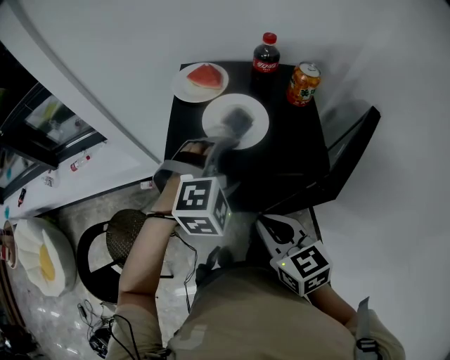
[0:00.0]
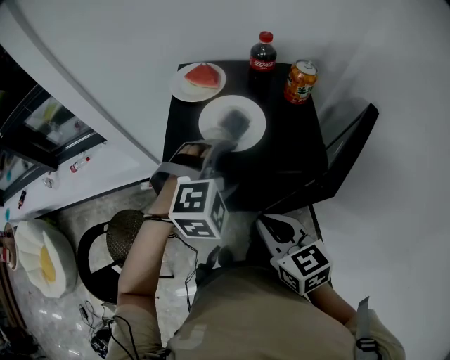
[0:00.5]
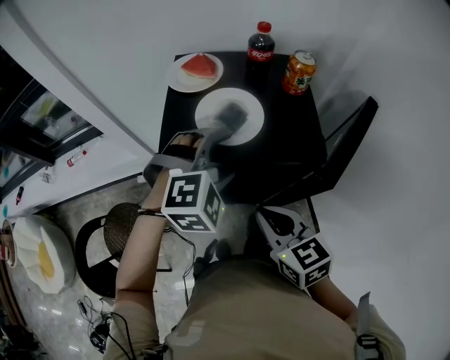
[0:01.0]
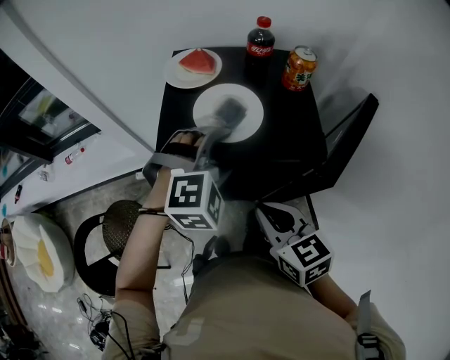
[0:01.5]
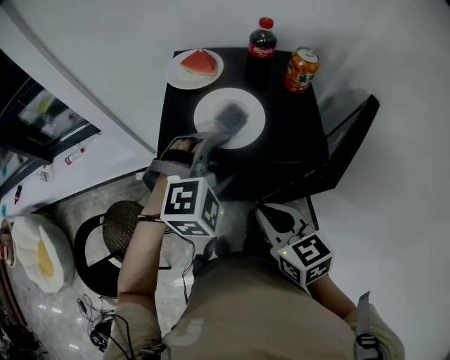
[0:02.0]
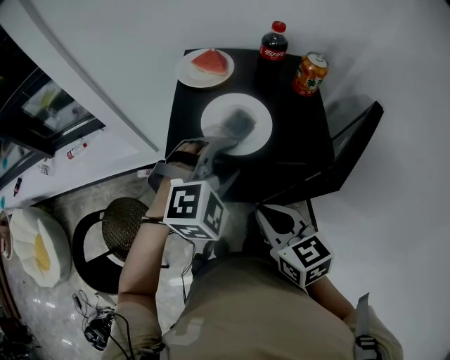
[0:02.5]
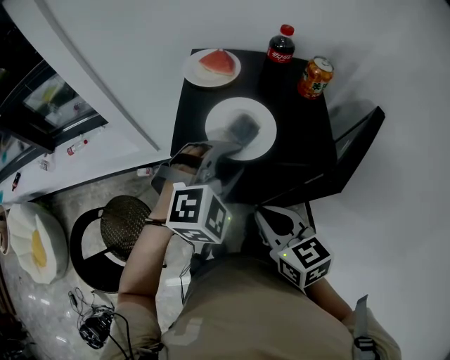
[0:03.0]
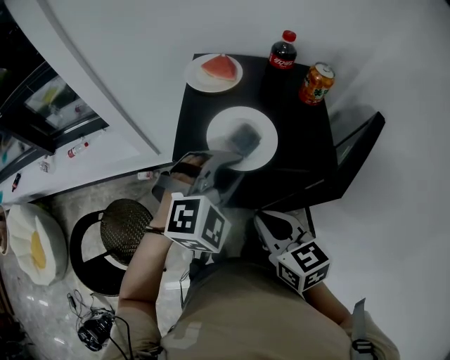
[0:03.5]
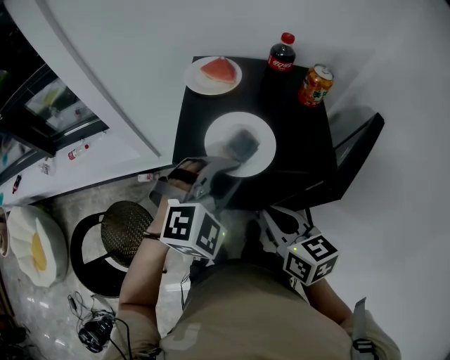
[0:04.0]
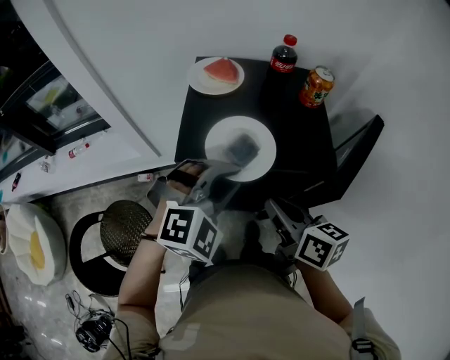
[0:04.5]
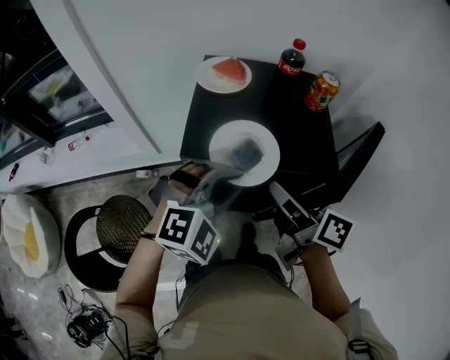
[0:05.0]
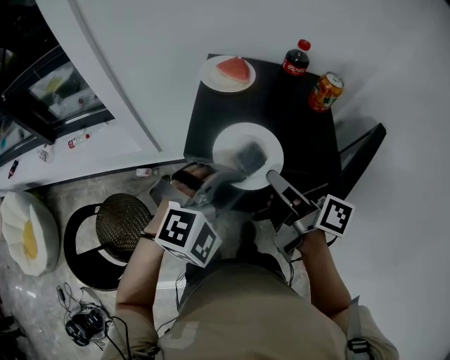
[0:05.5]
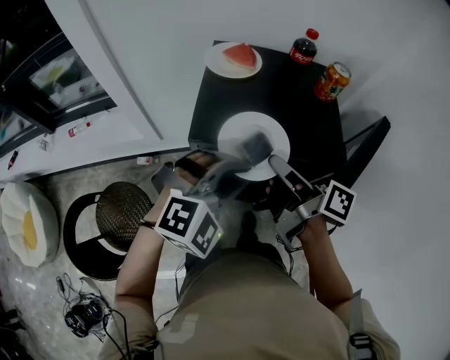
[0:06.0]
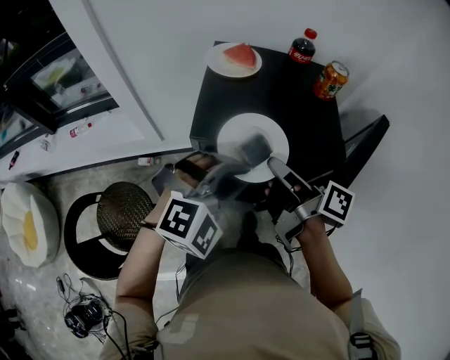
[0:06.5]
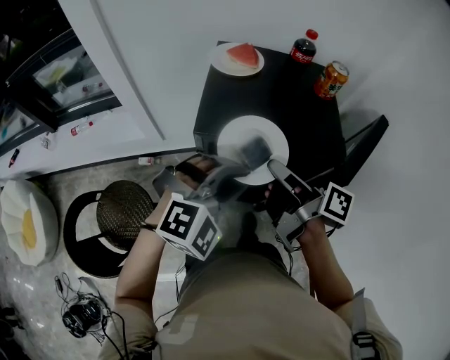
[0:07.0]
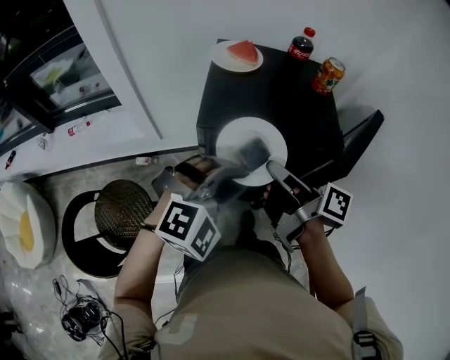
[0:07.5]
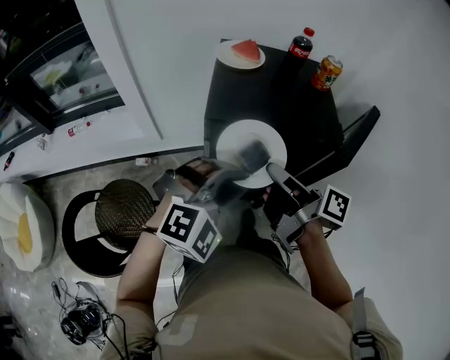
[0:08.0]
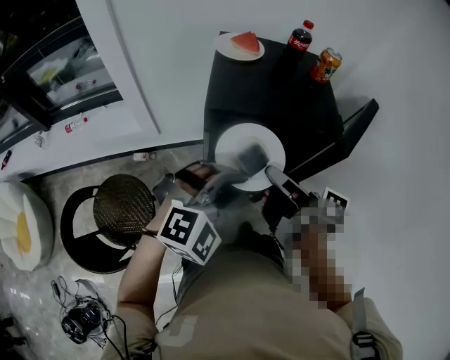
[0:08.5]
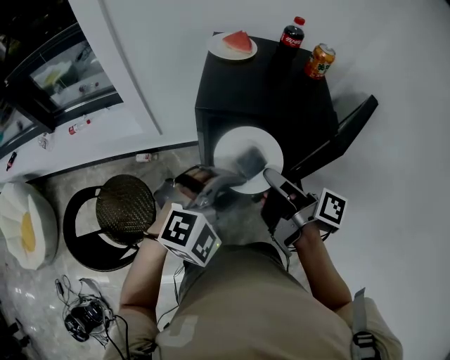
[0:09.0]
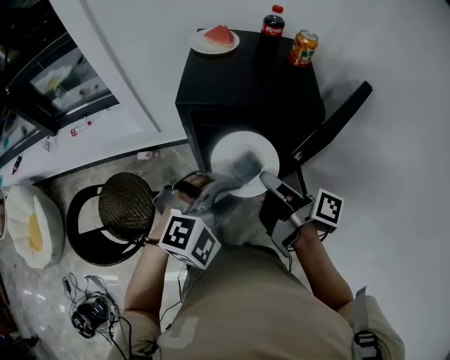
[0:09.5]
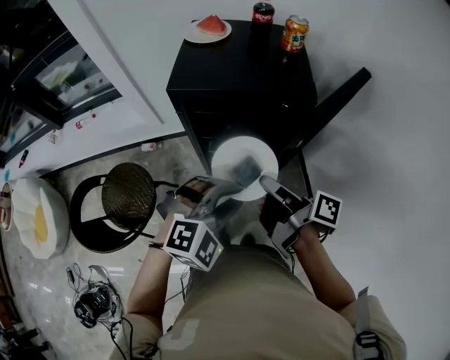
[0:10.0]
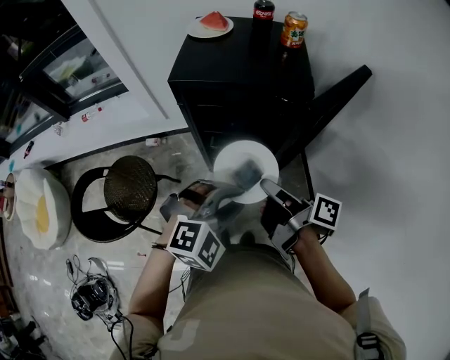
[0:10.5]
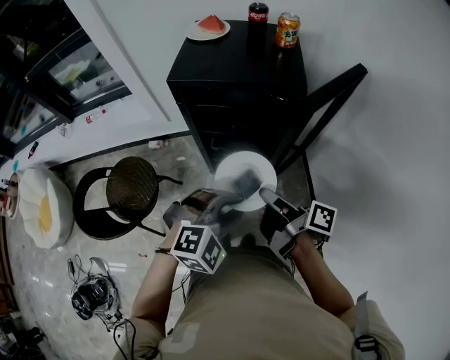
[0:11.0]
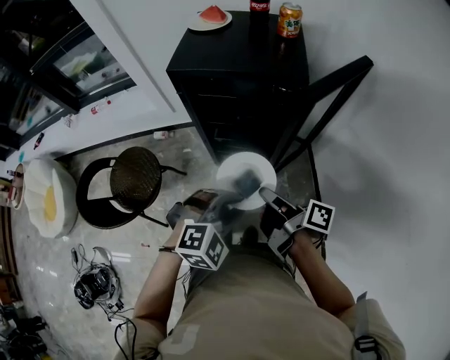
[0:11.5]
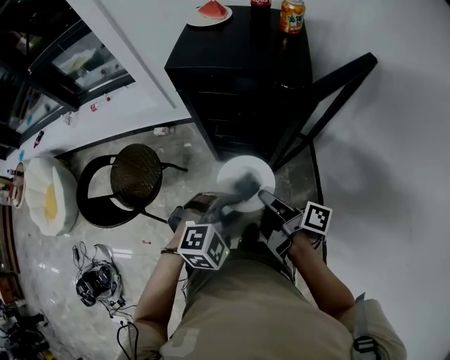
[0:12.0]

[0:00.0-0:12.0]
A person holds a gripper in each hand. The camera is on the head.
0:00.0 to 0:02.0: The grippers move only a little.
0:02.0 to 0:04.0: The left gripper closes up.
0:04.0 to 0:06.0: The right gripper travels forward by some 5 cm, and rolls clockwise, seen from behind, by some 50 degrees.
0:06.0 to 0:08.0: The grippers both shift backward by approximately 5 cm.
0:08.0 to 0:10.0: The left gripper travels backward and to the right by roughly 15 cm; the right gripper heads backward, to the right and downward, covering approximately 15 cm.
0:10.0 to 0:12.0: Both grippers move downward and backward, roughly 10 cm.

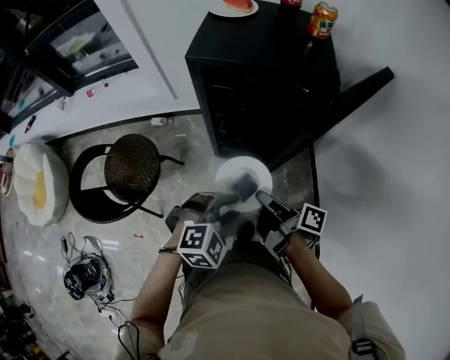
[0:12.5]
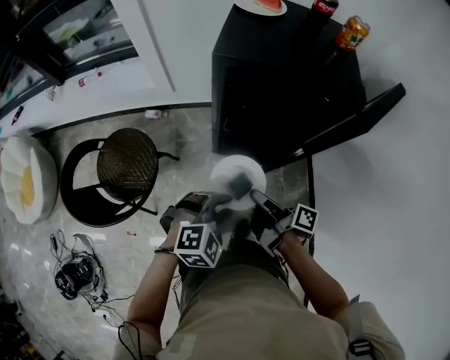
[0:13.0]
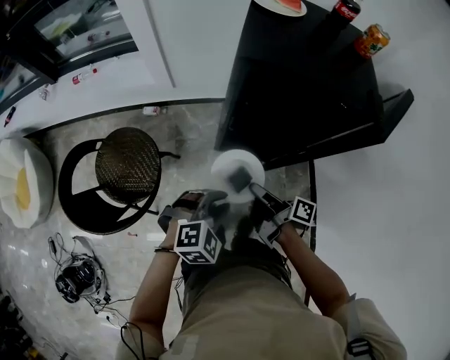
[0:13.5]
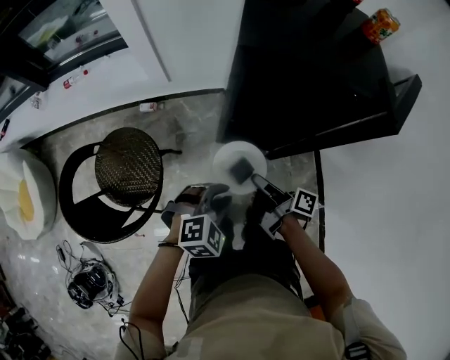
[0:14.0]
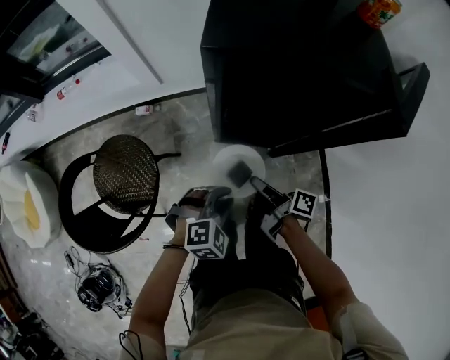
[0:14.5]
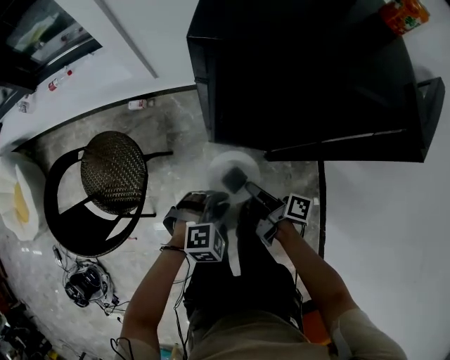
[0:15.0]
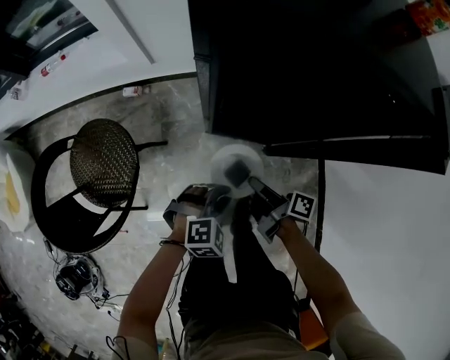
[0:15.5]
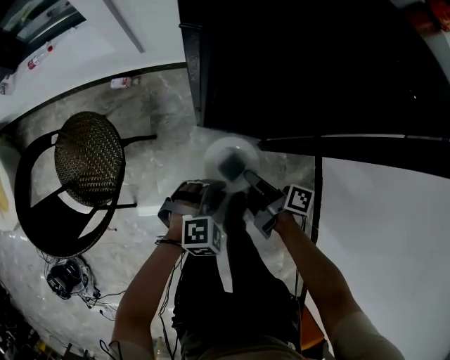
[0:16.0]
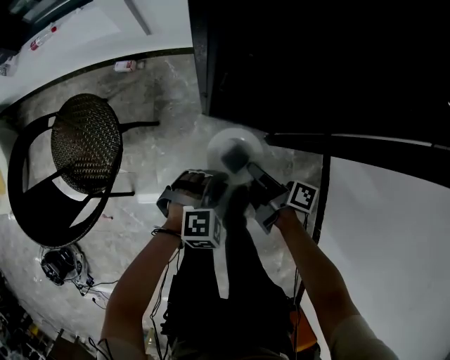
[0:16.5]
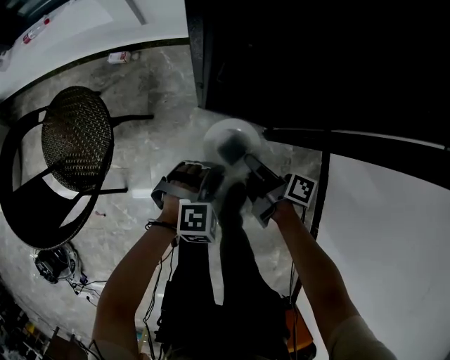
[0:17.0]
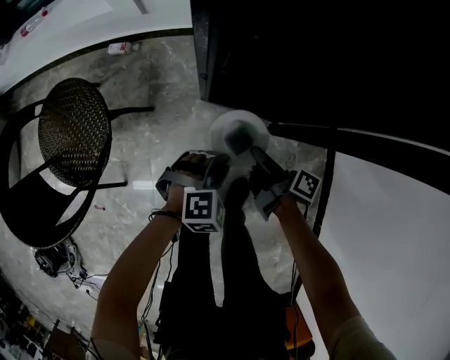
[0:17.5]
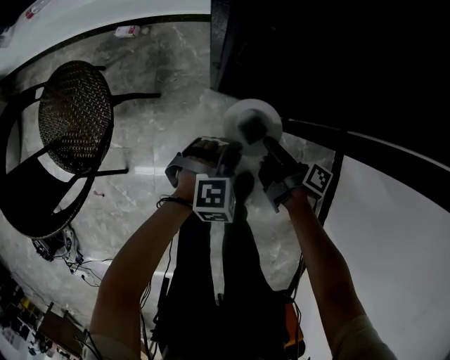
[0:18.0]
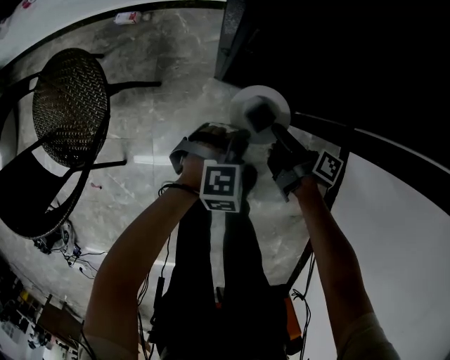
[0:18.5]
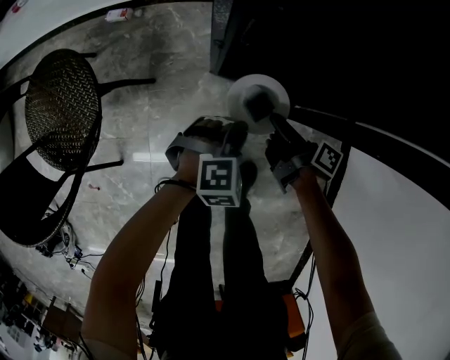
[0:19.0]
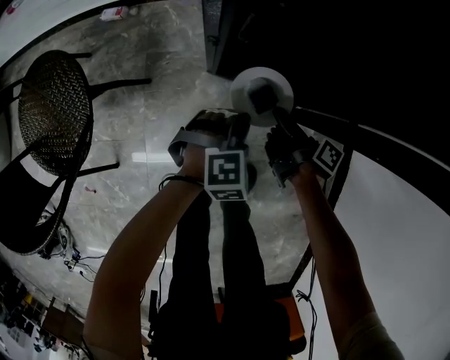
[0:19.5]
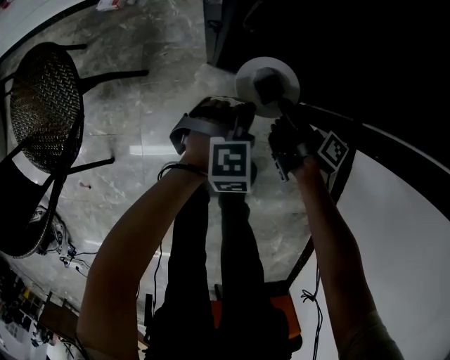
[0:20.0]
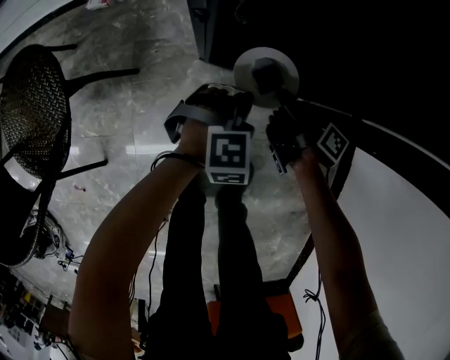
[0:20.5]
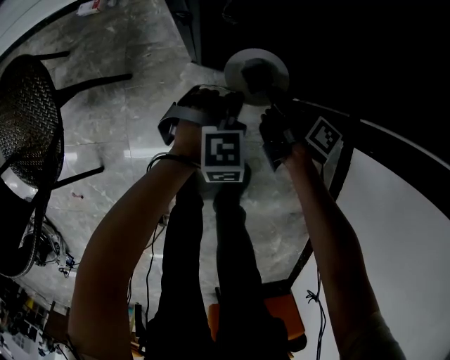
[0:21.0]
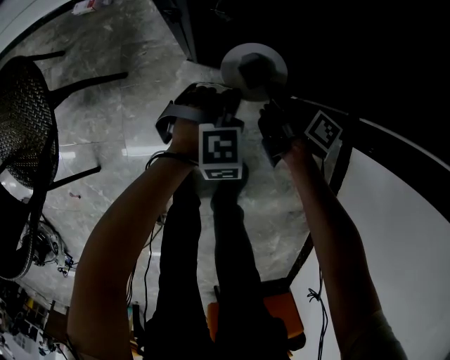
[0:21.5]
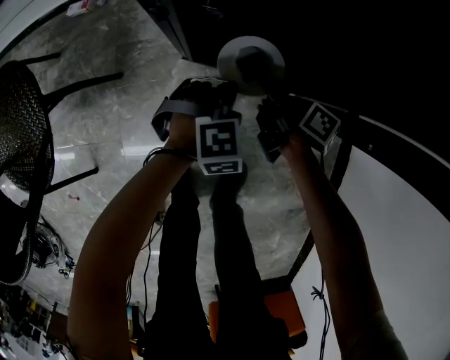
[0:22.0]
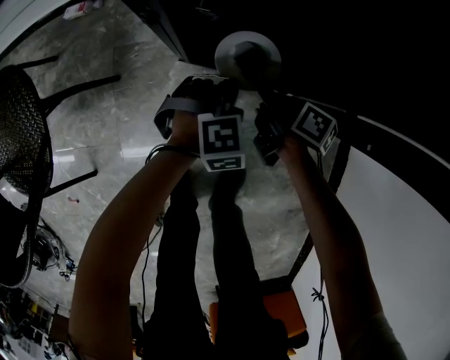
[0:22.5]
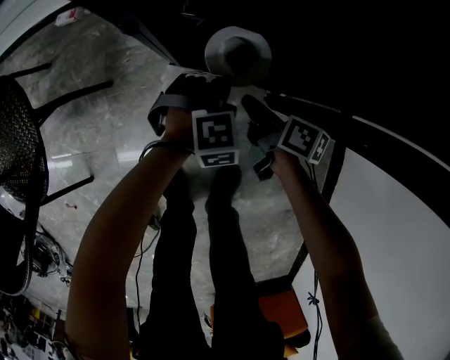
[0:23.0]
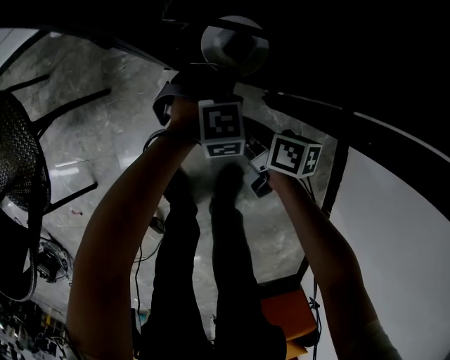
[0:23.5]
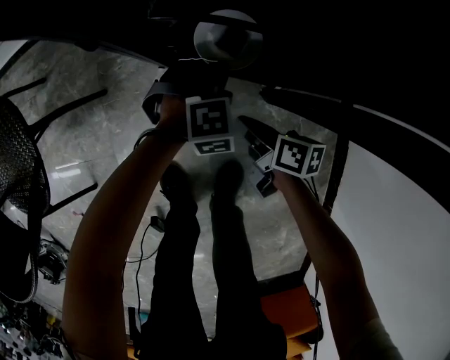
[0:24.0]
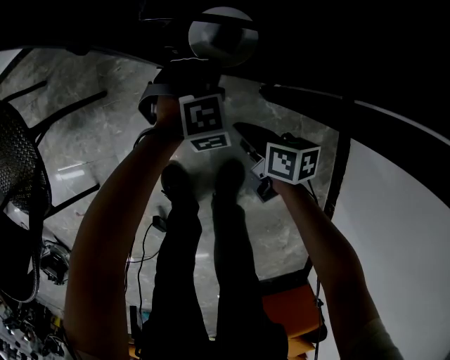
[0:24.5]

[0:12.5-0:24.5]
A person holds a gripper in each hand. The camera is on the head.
0:12.5 to 0:14.5: The two grippers go roughly 20 cm downward, to the left and forward.
0:14.5 to 0:16.5: Both grippers travel together downward, about 20 cm.
0:16.5 to 0:18.5: The two grippers go some 10 cm downward.
0:18.5 to 0:20.5: Both grippers travel together downward and forward, roughly 10 cm.
0:20.5 to 0:22.5: The left gripper ends up about 5 cm from where it was. Meanwhile the right gripper swivels approximately 20 degrees.
0:22.5 to 0:24.5: The right gripper is displaced backward by some 10 cm, and swivels some 30 degrees.

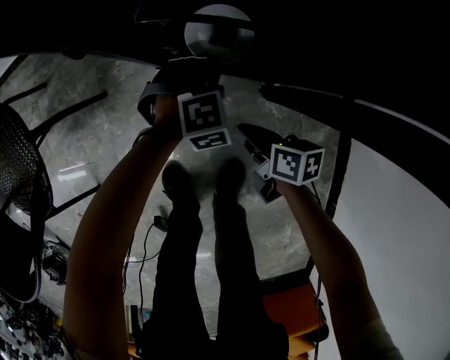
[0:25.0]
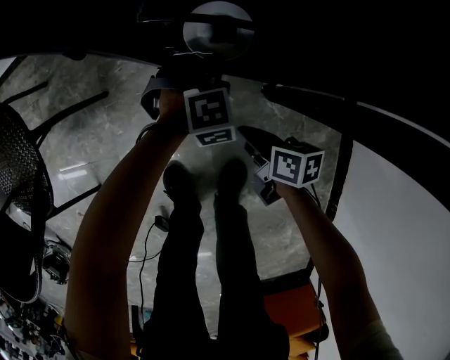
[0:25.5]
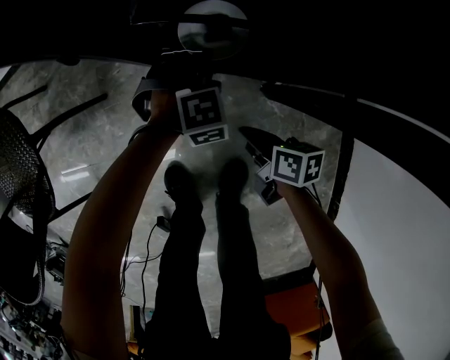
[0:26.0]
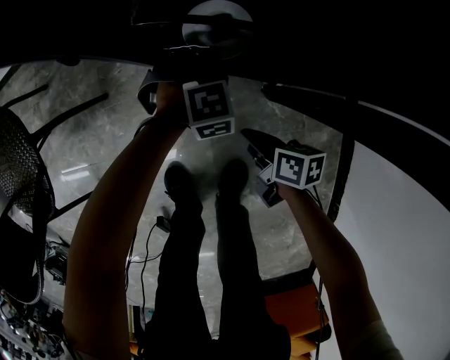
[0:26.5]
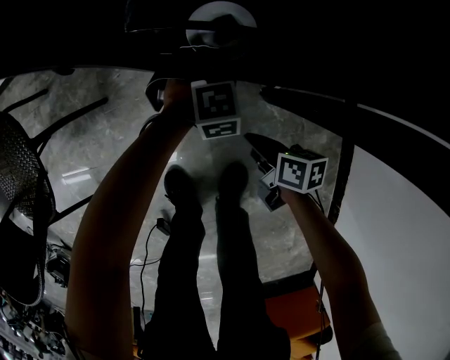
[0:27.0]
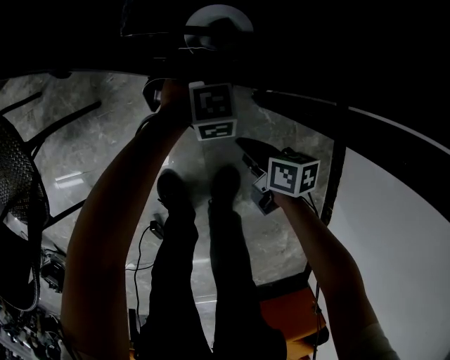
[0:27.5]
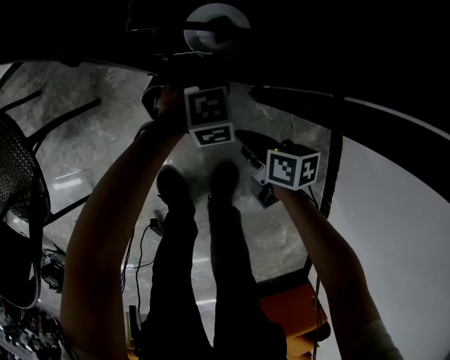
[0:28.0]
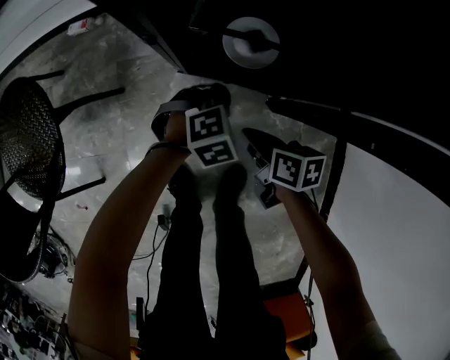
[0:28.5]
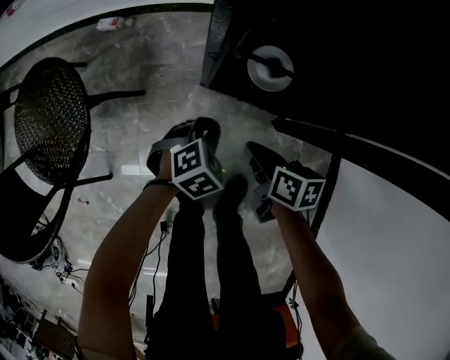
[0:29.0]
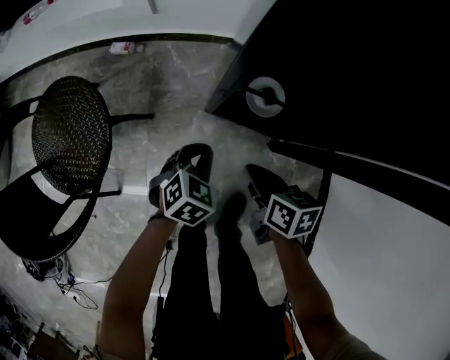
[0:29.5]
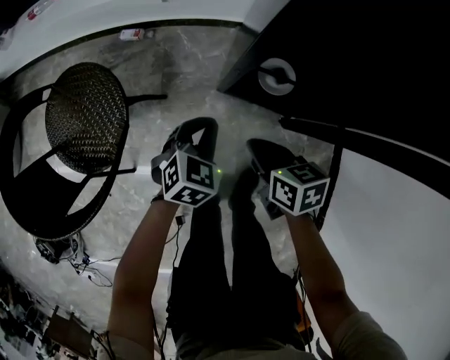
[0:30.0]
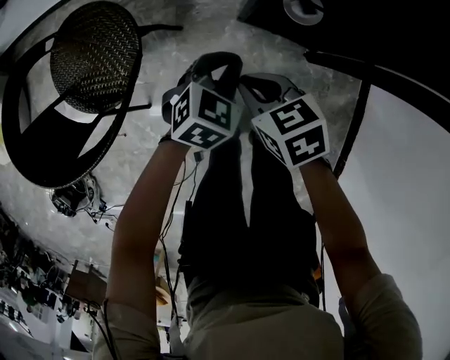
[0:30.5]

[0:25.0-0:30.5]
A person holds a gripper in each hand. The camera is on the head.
0:25.0 to 0:27.0: The grippers make only small movements.
0:27.0 to 0:28.5: The right gripper shifts roughly 5 cm upward, while the left gripper moves backward and to the left, some 10 cm, and turns by about 30 degrees.
0:28.5 to 0:30.5: The two grippers go about 30 cm upward and to the left. The right gripper swivels roughly 40 degrees. The left gripper swivels roughly 30 degrees.
